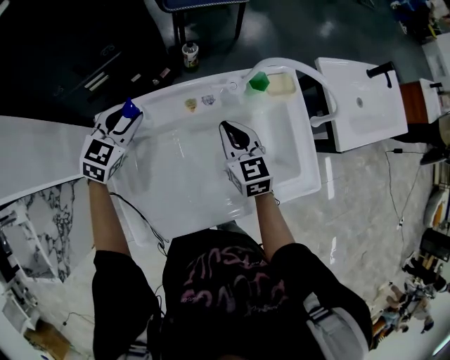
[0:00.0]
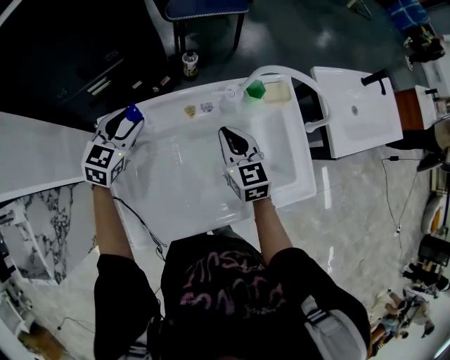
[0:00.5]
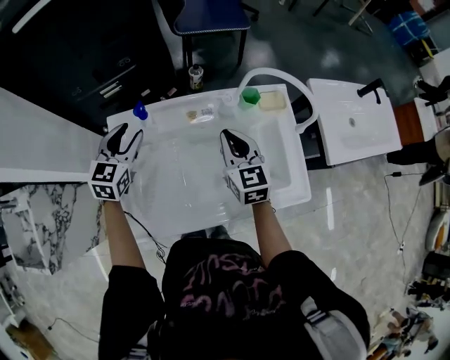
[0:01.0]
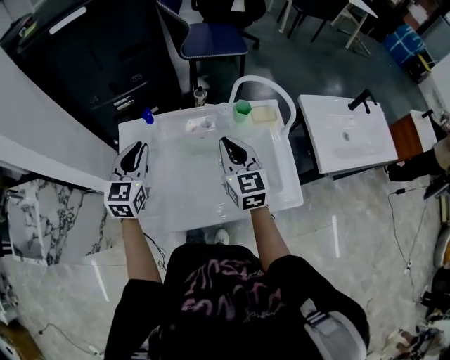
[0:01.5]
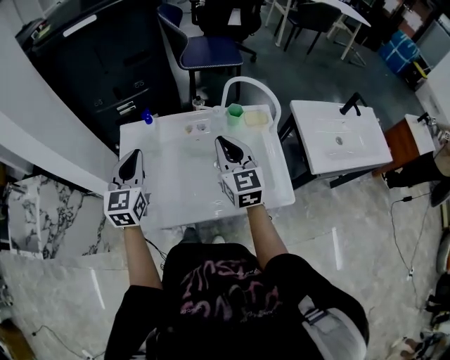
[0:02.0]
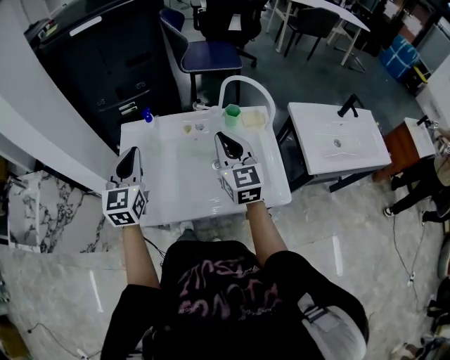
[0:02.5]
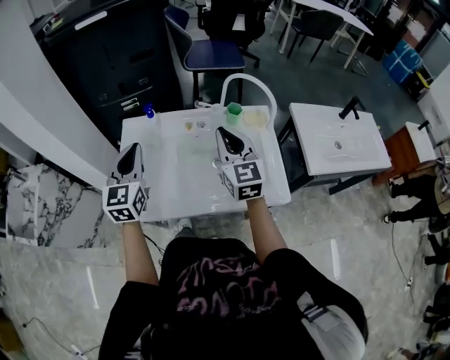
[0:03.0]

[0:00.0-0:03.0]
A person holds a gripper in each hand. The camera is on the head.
0:00.0 to 0:01.5: The right gripper travels upward and backward by roughly 15 cm. Meanwhile the left gripper shifts approximately 20 cm backward and upward, and rotates some 30 degrees.
0:01.5 to 0:03.0: The left gripper shifts some 10 cm backward and upward. Meanwhile the right gripper moves upward and backward, about 10 cm.

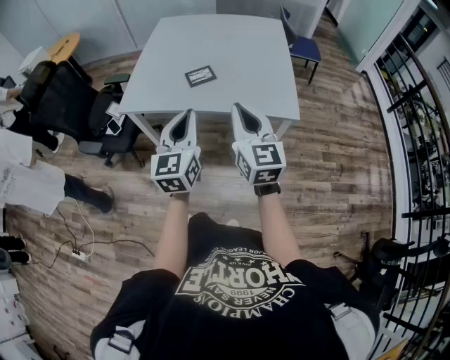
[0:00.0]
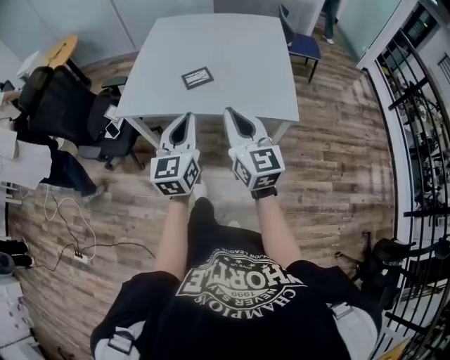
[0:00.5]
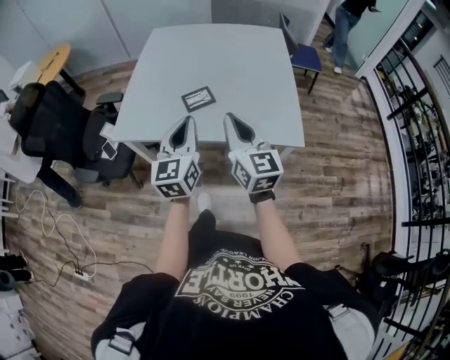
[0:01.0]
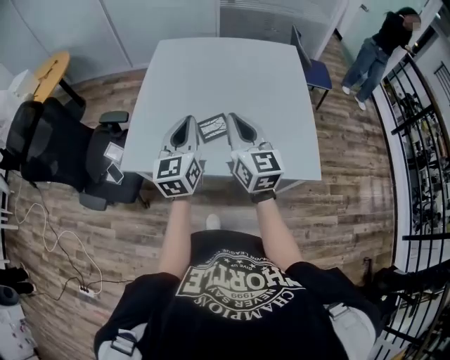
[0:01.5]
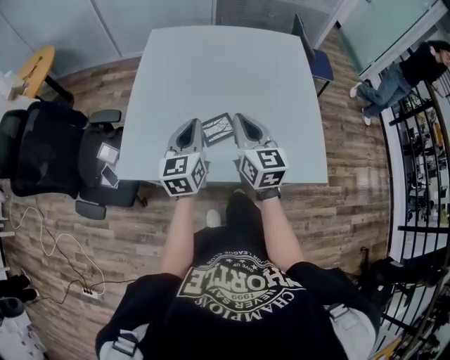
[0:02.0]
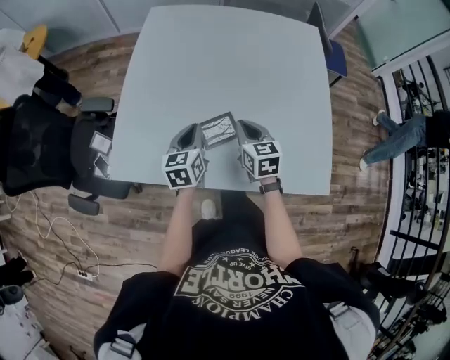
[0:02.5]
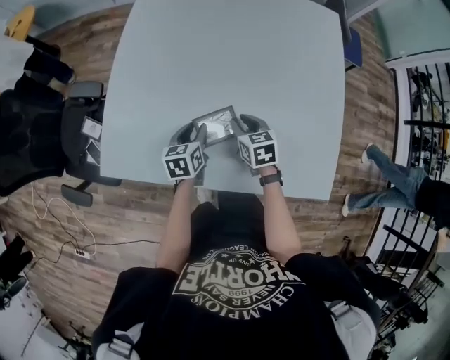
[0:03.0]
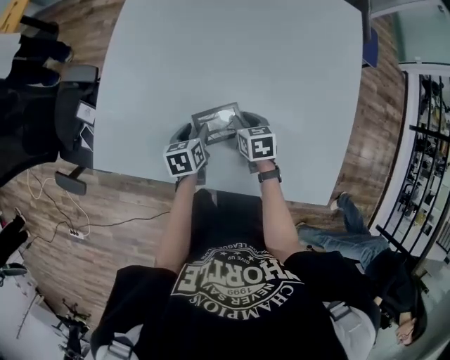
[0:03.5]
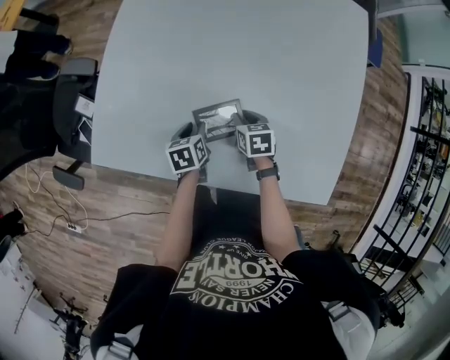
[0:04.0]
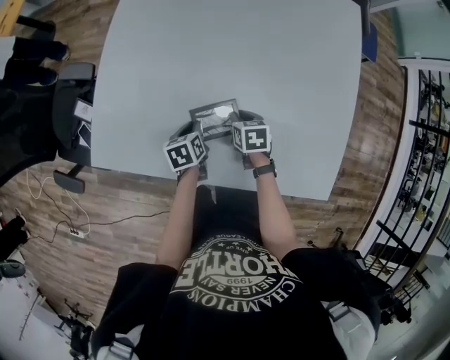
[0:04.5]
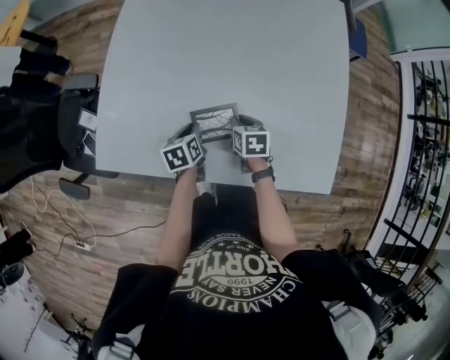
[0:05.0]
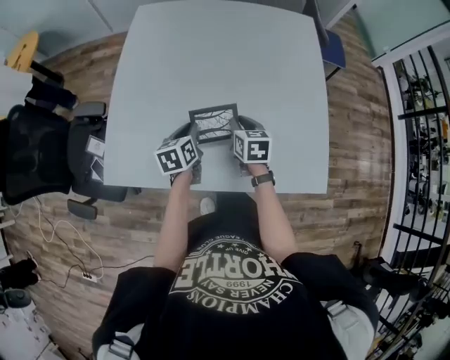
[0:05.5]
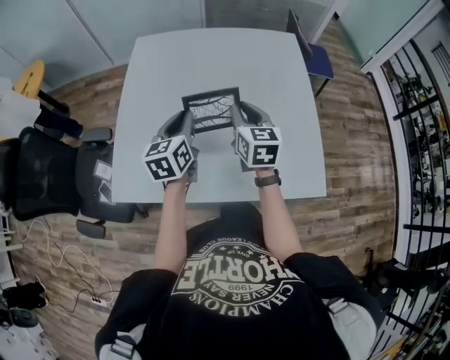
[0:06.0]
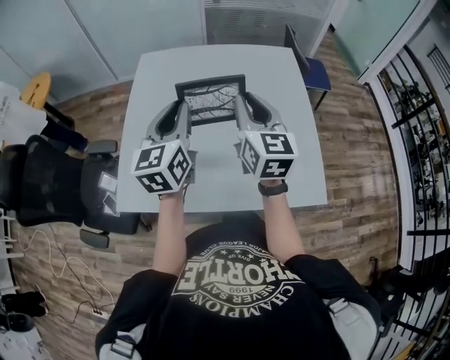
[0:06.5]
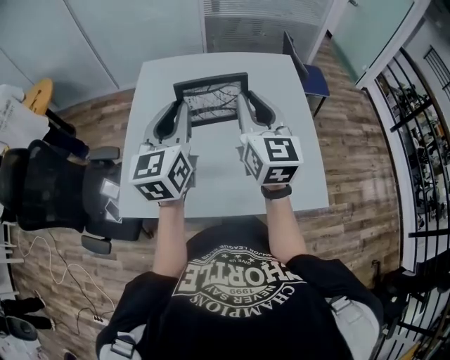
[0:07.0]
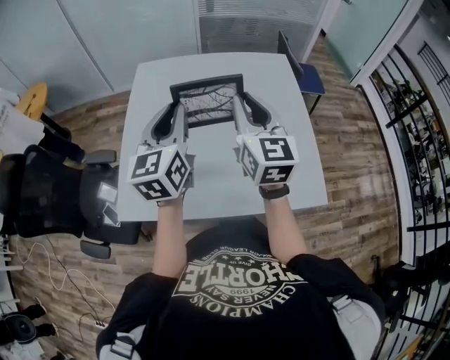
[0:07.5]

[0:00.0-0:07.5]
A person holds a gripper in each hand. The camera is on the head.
0:00.0 to 0:02.0: The pair of grippers is taken forward, approximately 40 cm.
0:02.0 to 0:04.0: The right gripper goes some 40 cm downward and forward, tilts its fingers about 50 degrees downward, and opens its fingers; the left gripper travels downward by about 35 cm, tilts its fingers roughly 40 degrees downward, and opens its fingers.
0:04.0 to 0:05.5: Both grippers move upward, about 15 cm. The left gripper turns by about 20 degrees, and closes its fingers; the right gripper rotates approximately 20 degrees.
0:05.5 to 0:07.5: The two grippers go roughly 35 cm upward. The left gripper tips its fingers upward by roughly 40 degrees; the right gripper points its fingers about 40 degrees further upward.

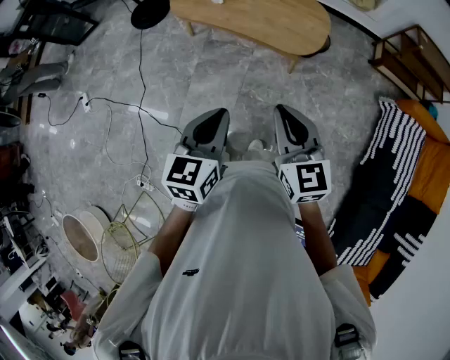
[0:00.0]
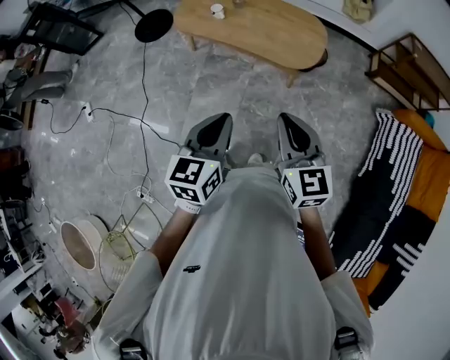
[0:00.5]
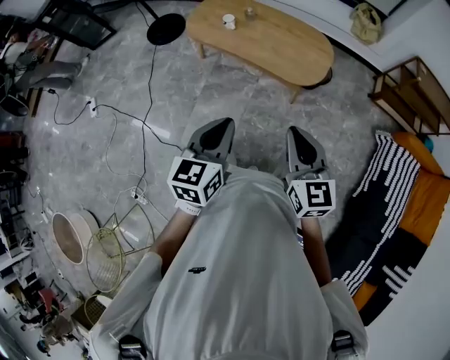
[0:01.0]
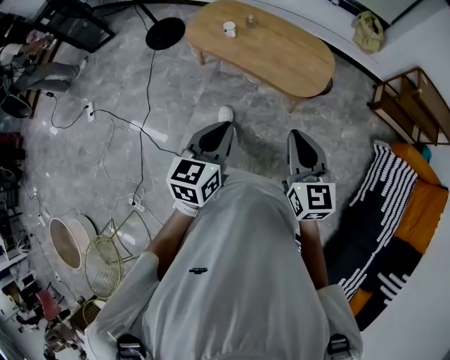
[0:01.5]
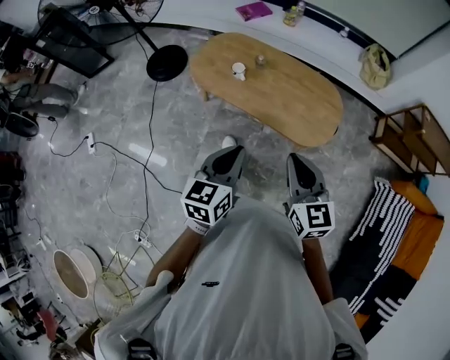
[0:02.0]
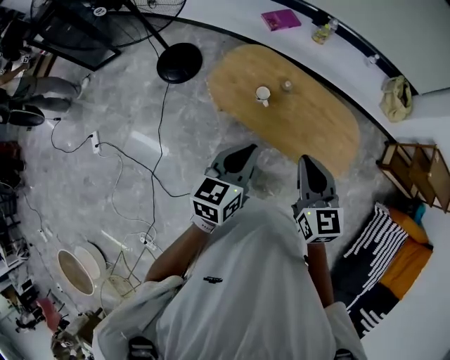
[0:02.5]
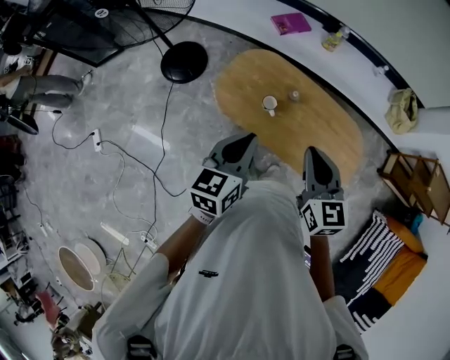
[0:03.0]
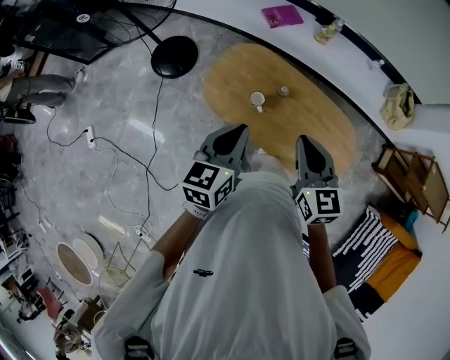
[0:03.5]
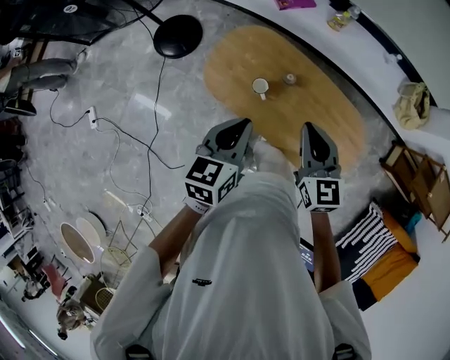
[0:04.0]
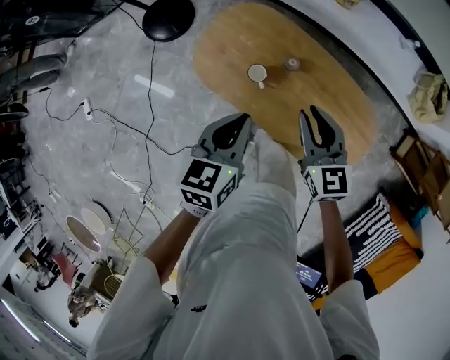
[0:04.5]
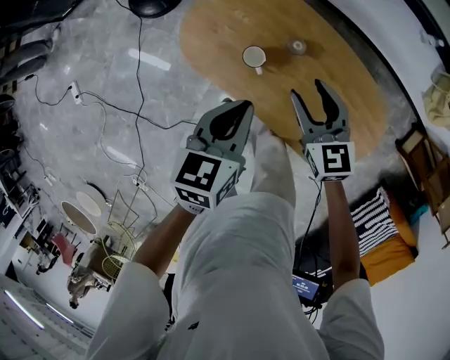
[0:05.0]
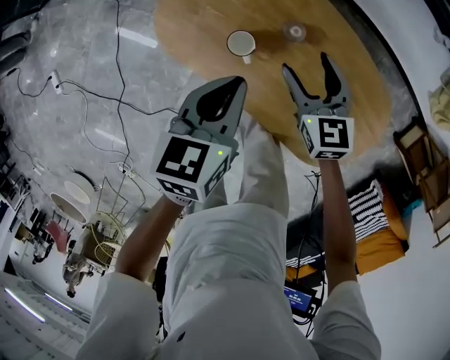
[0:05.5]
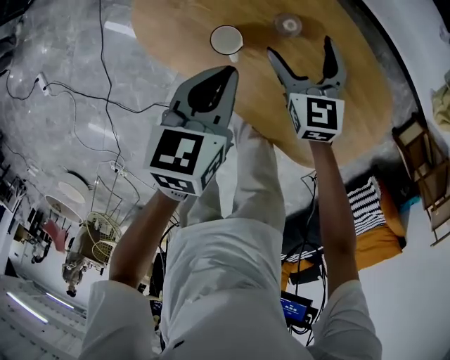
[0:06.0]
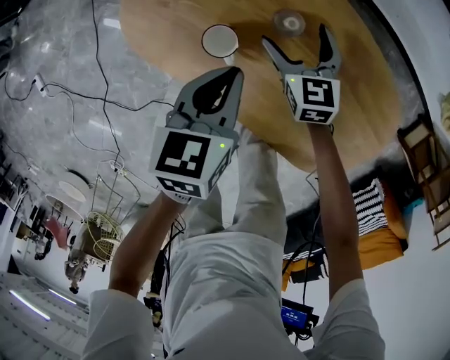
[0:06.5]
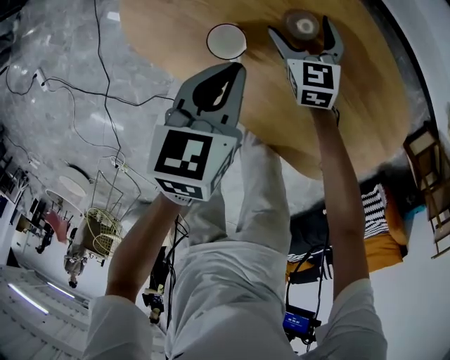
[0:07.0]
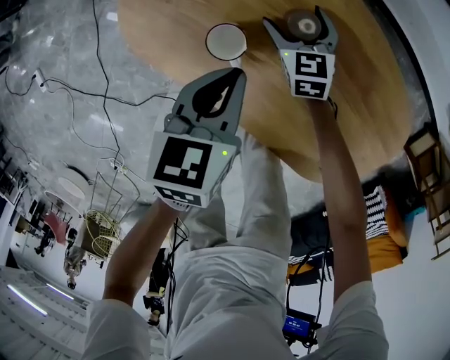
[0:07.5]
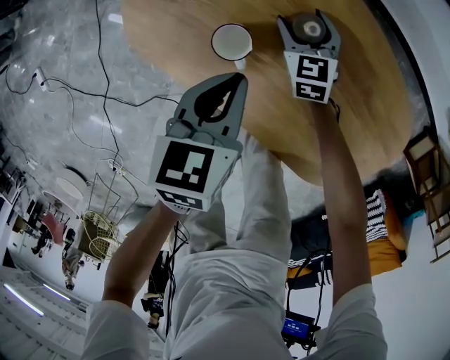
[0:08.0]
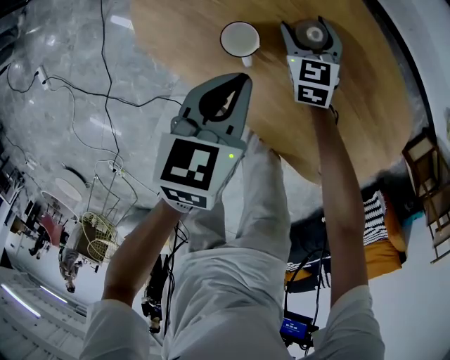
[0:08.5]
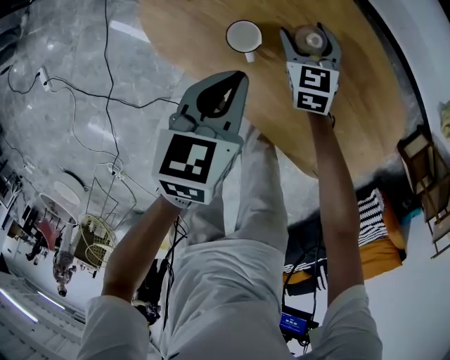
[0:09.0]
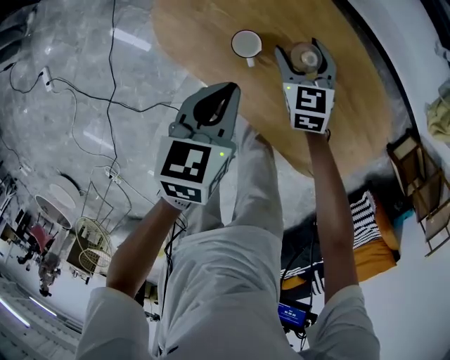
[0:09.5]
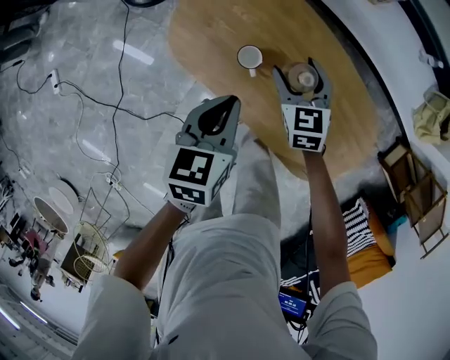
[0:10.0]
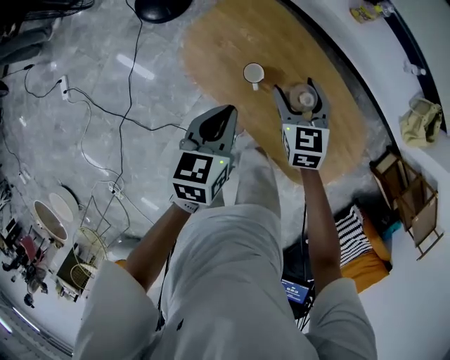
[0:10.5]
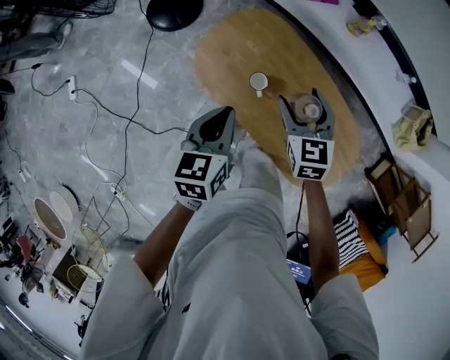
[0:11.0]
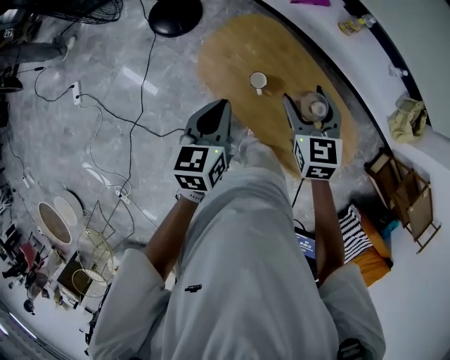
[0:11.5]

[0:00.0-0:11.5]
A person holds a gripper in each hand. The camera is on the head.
0:00.0 to 0:02.0: Both grippers move forward, about 25 cm.
0:02.0 to 0:04.0: The grippers both shift forward by approximately 35 cm.
0:04.0 to 0:06.0: The right gripper heads downward and forward, covering approximately 40 cm, and opens. Meanwhile the left gripper travels downward by about 25 cm.
0:06.0 to 0:07.5: The left gripper heads downward, covering some 5 cm. The right gripper shifts some 15 cm downward.
0:07.5 to 0:09.5: The left gripper is displaced upward by about 10 cm. Meanwhile the right gripper goes some 15 cm upward.
0:09.5 to 0:11.5: The two grippers go roughly 25 cm upward.

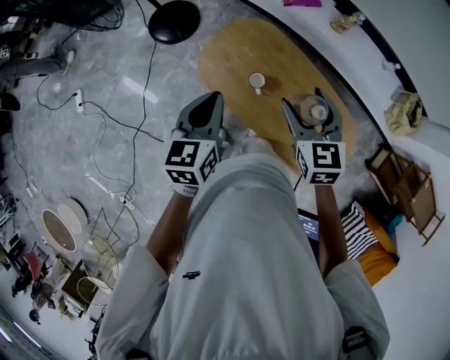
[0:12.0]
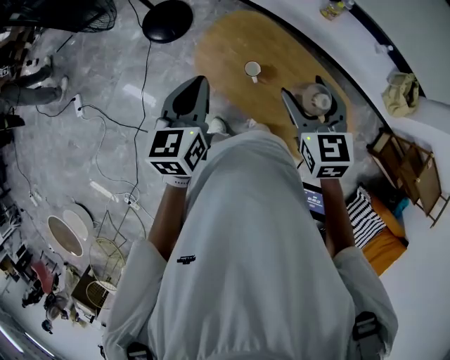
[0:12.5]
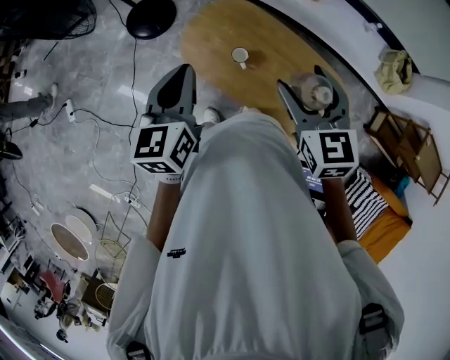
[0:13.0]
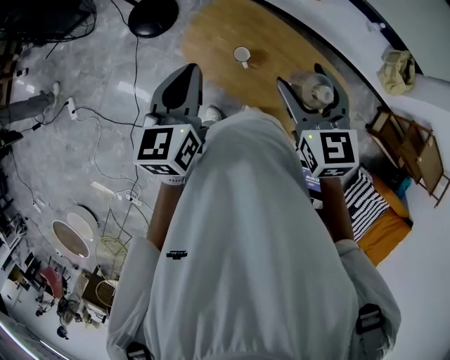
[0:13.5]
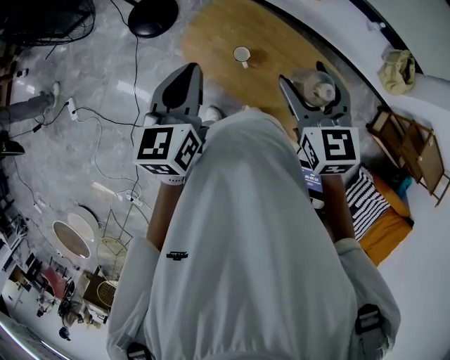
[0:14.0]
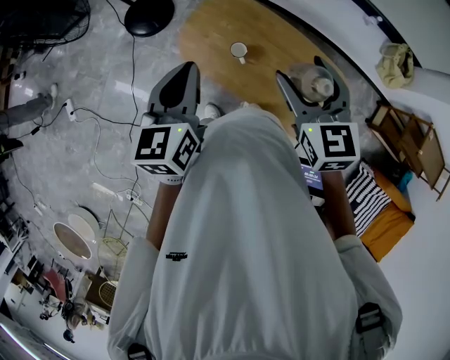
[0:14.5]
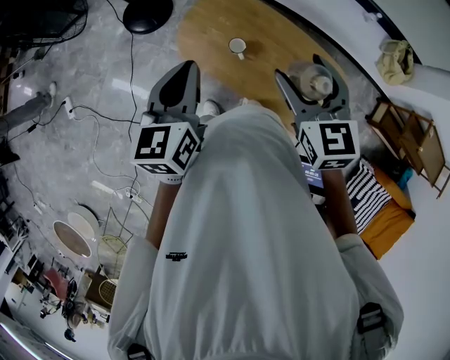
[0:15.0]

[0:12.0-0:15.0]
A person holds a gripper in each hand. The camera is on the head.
0:12.0 to 0:13.5: The right gripper shifts roughly 10 cm upward and backward, while the left gripper heads upward, covering about 5 cm.
0:13.5 to 0:15.0: The grippers stay close to where they were, moving slightly.

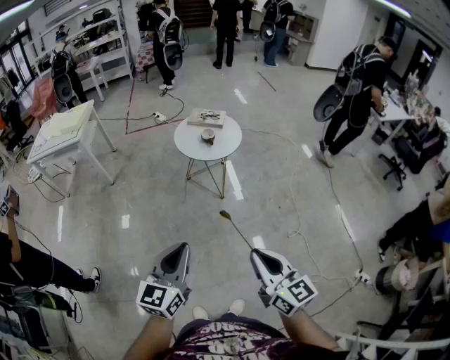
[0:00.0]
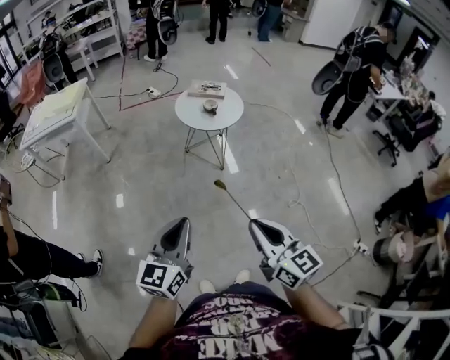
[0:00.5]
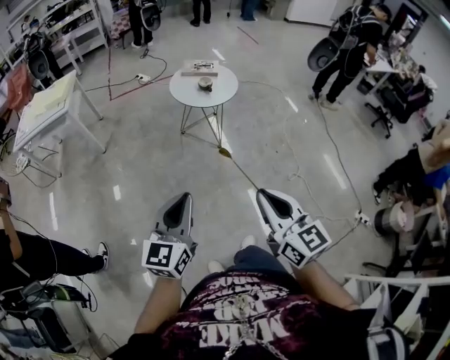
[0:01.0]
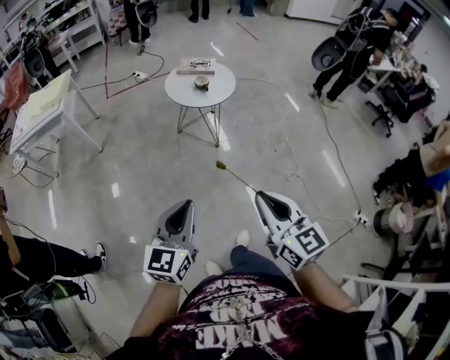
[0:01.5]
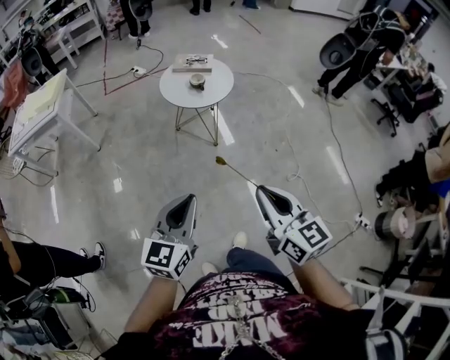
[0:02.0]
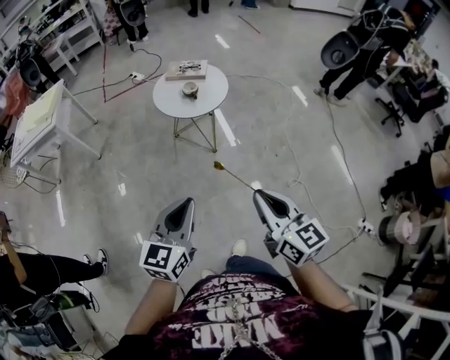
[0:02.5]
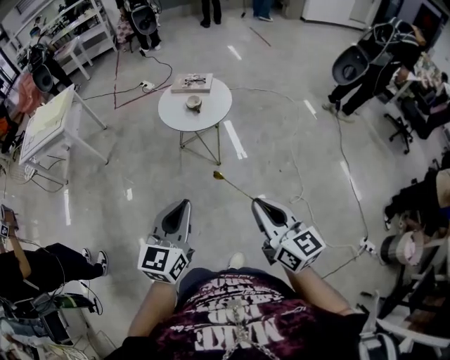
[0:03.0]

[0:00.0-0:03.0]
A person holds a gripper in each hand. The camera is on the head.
0:00.0 to 0:01.5: The two grippers go some 10 cm to the left.
0:01.5 to 0:03.0: The grippers both shift to the right and forward by roughly 20 cm.
